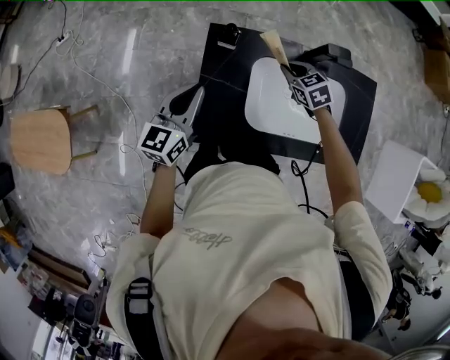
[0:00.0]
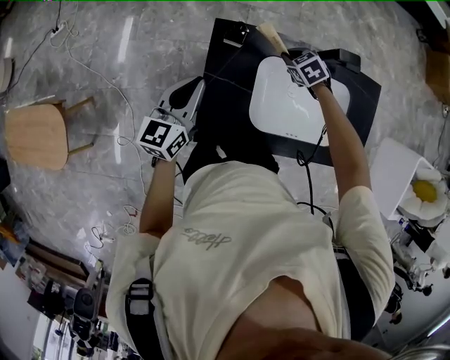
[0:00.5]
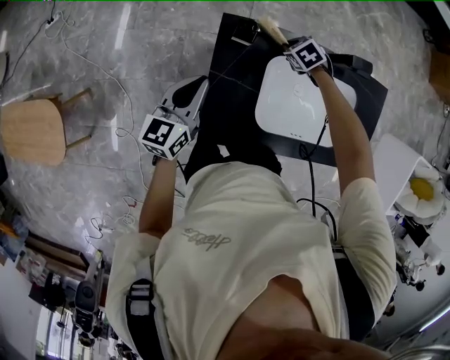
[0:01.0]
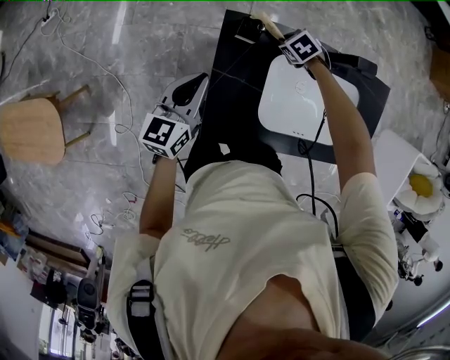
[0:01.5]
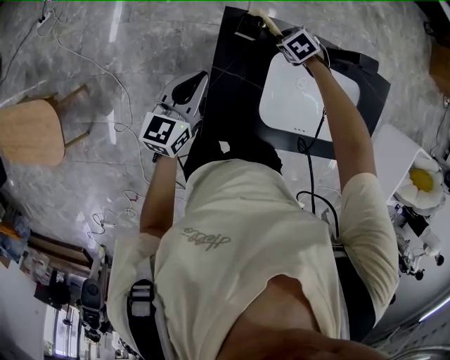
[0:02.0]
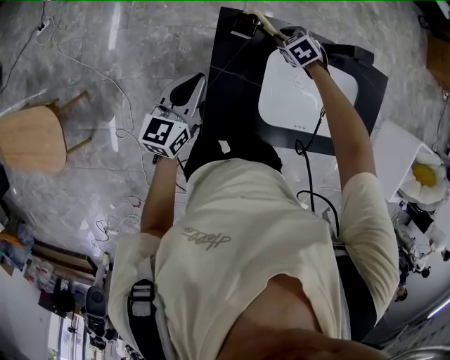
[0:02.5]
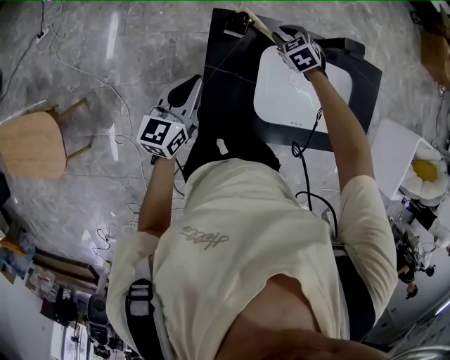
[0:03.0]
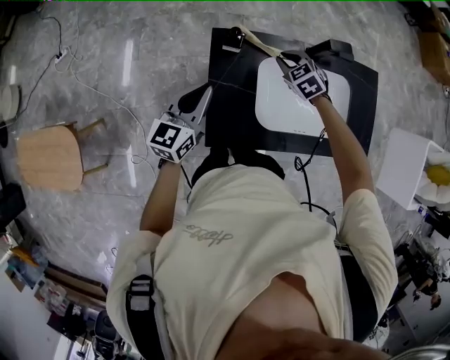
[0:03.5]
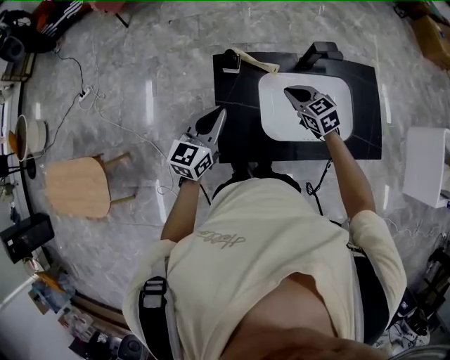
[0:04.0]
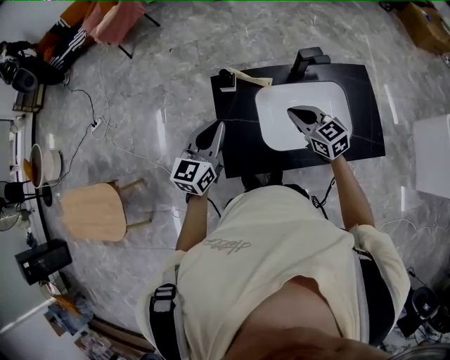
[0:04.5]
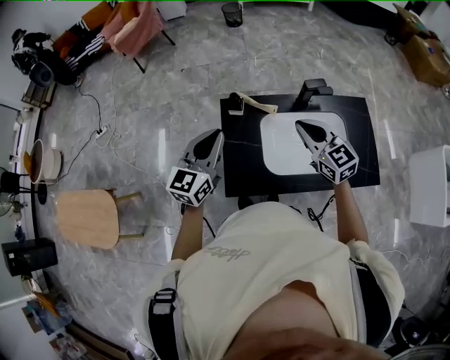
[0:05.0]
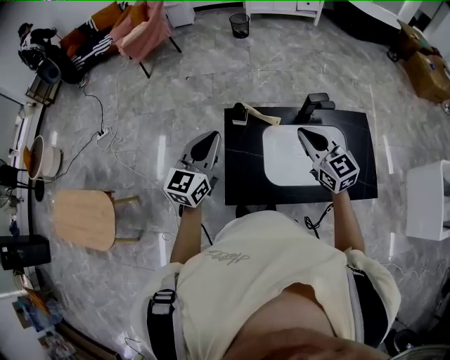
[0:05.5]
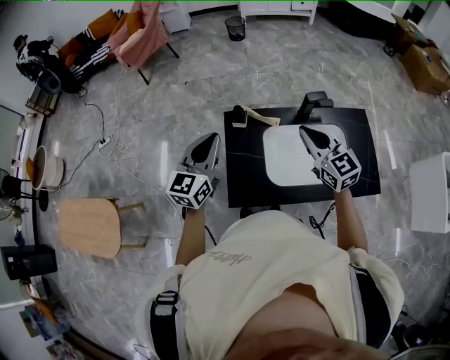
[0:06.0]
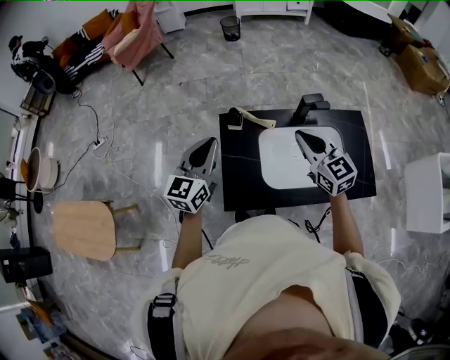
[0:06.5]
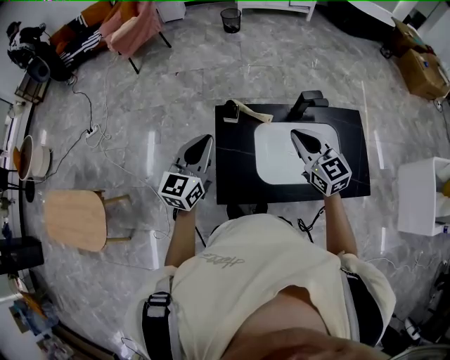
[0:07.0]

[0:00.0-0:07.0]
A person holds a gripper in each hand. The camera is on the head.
0:00.0 to 0:02.0: The left gripper shifts by roughly 10 cm, while the right gripper is displaced downward by roughly 15 cm, and turns by roughly 30 degrees.
0:02.0 to 0:03.5: The left gripper moves upward, about 5 cm. The right gripper is displaced upward by roughly 15 cm, and rotates about 30 degrees.
0:03.5 to 0:05.0: The right gripper heads upward and backward, covering about 30 cm, and tips its fingers upward by approximately 40 degrees; the left gripper heads upward and backward, covering some 15 cm.
0:05.0 to 0:07.0: The grippers move only a little.

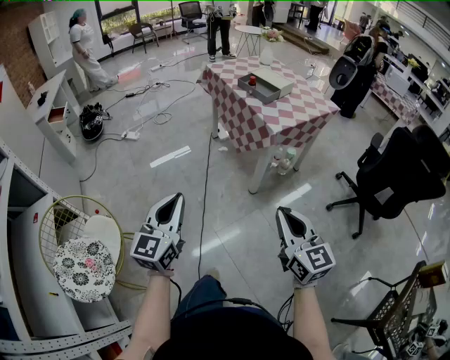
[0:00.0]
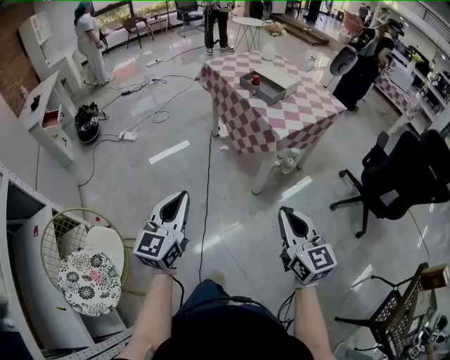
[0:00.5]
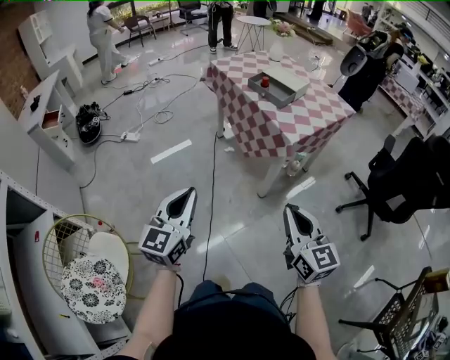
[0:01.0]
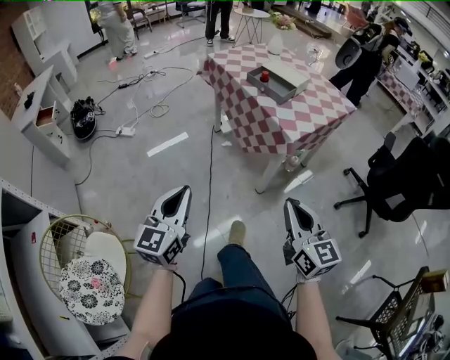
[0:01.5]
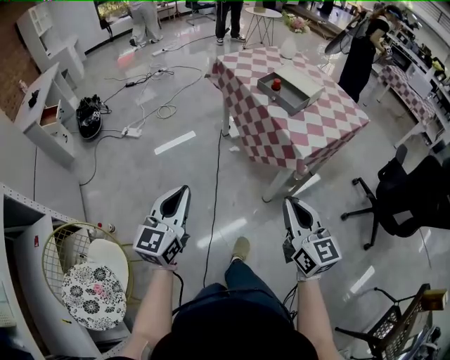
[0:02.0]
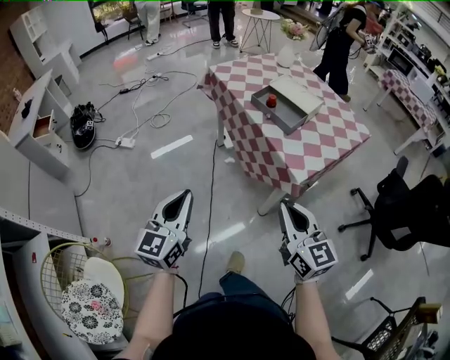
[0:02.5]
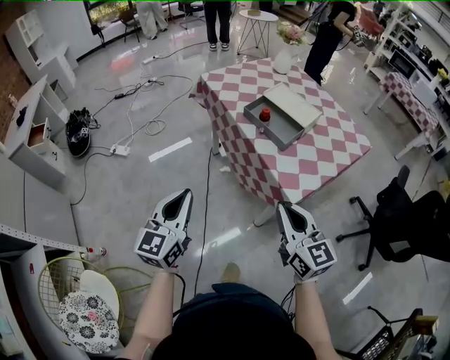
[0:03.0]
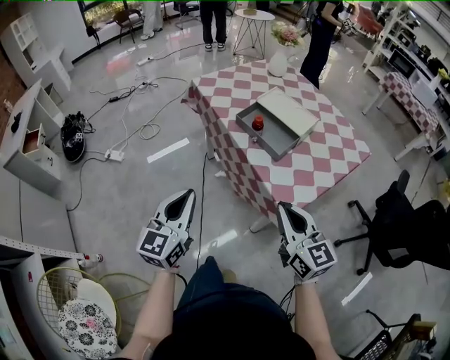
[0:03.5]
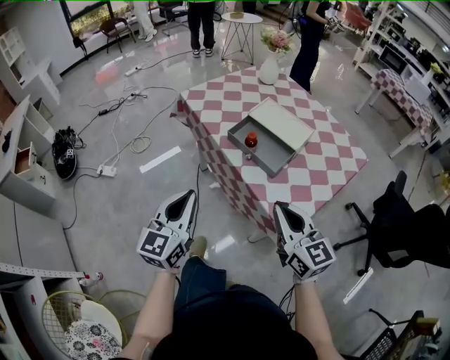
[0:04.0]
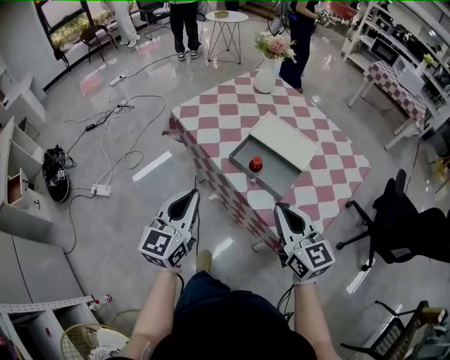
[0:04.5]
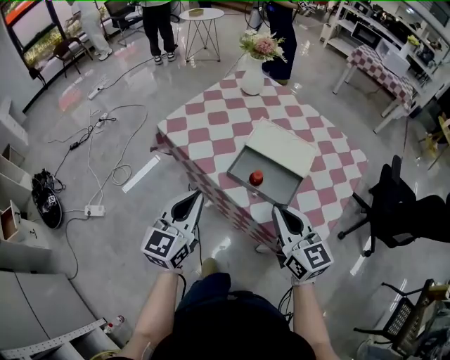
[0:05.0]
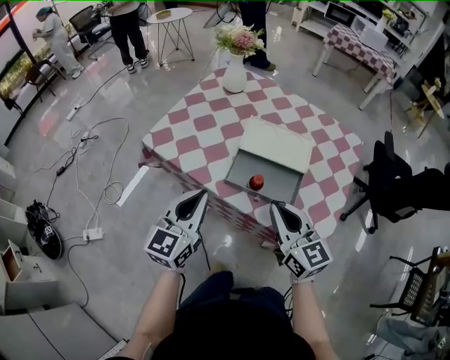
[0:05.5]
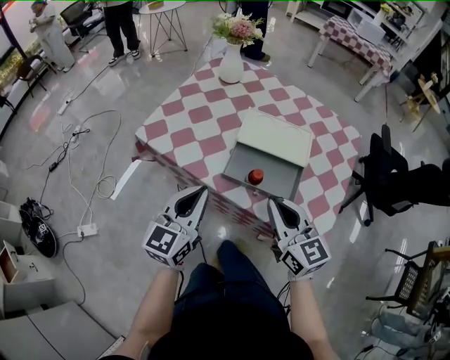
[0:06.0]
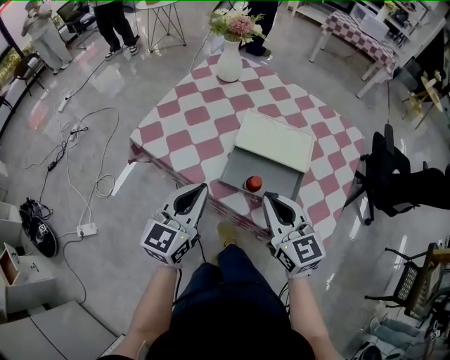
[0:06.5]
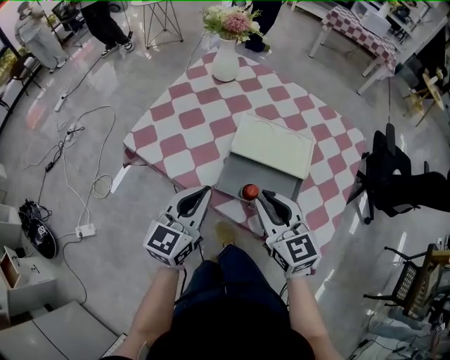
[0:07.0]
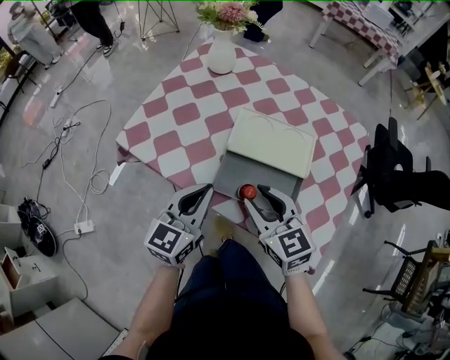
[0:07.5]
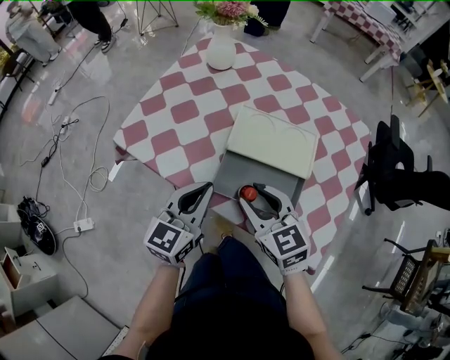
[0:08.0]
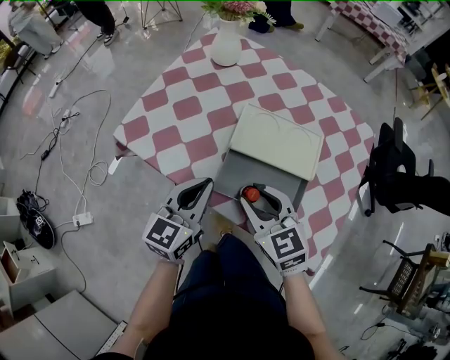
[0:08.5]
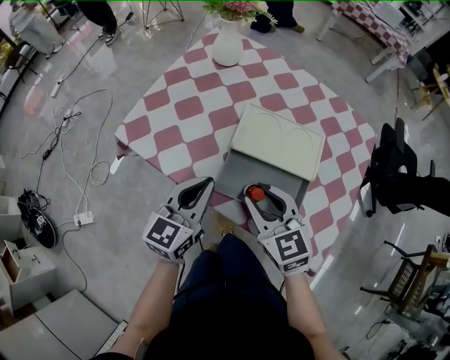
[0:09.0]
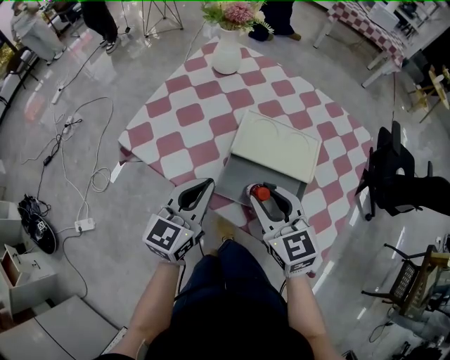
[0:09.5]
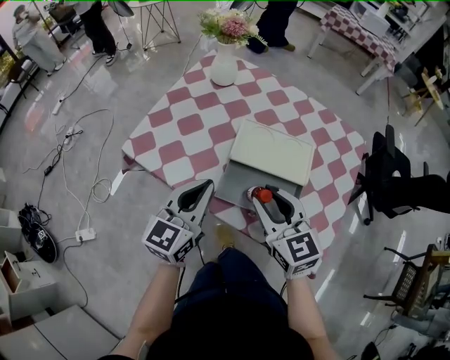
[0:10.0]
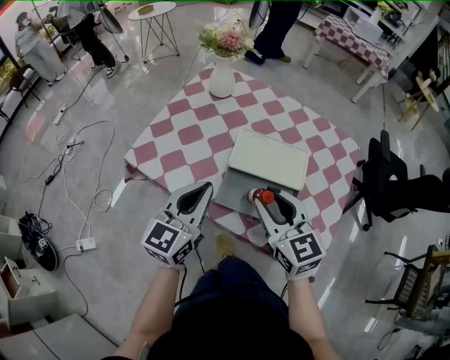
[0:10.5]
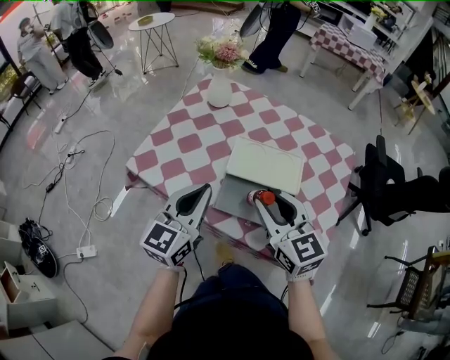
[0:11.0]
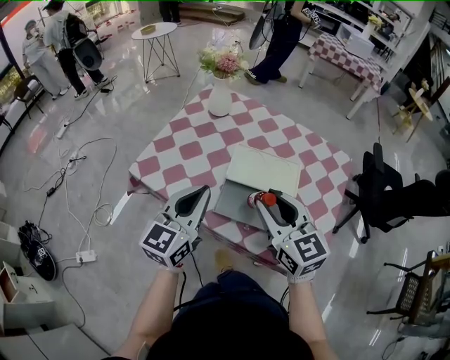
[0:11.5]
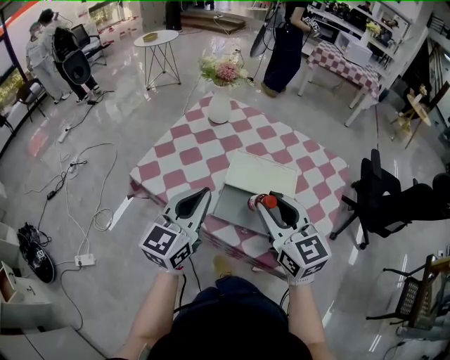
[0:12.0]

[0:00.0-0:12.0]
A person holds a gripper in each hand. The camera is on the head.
0:00.0 to 0:02.0: The two grippers go approximately 25 cm forward.
0:02.0 to 0:04.0: Both grippers move forward, some 35 cm.
0:04.0 to 0:06.0: The left gripper moves approximately 25 cm, and swivels roughly 30 degrees, while the right gripper shifts by approximately 20 cm, and changes its angle by approximately 20 degrees.
0:06.0 to 0:08.0: Both grippers travel together forward and downward, about 10 cm. The right gripper turns by about 20 degrees, and opens up.
0:08.0 to 0:10.0: Both grippers travel together upward, roughly 5 cm.
0:10.0 to 0:12.0: Both grippers move upward, roughly 10 cm.

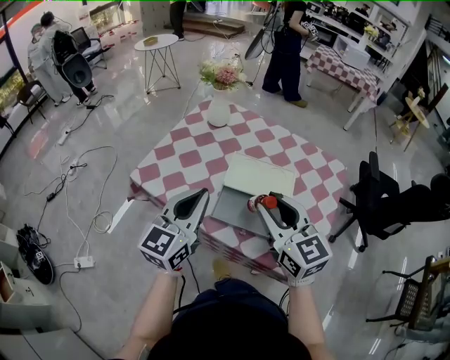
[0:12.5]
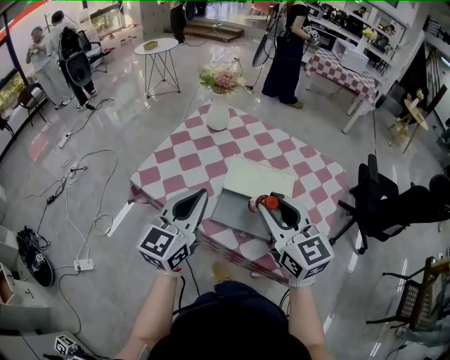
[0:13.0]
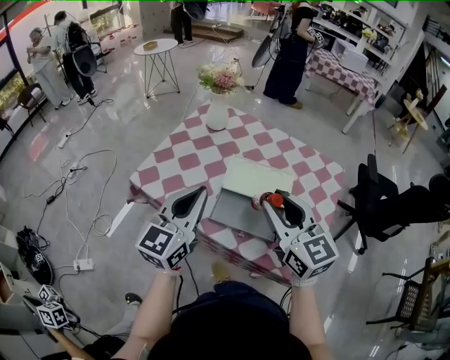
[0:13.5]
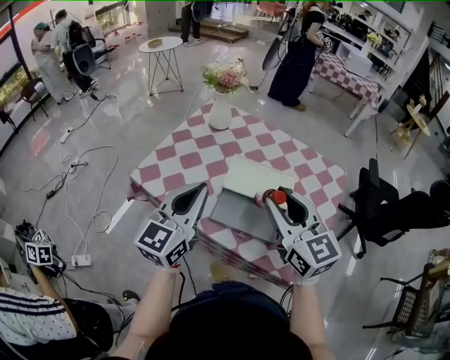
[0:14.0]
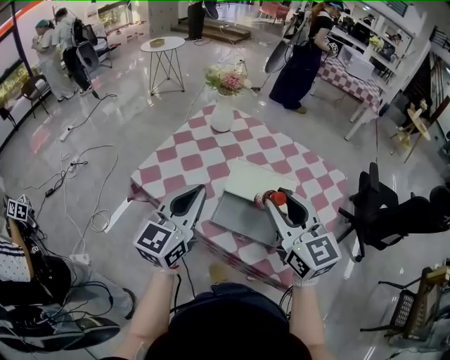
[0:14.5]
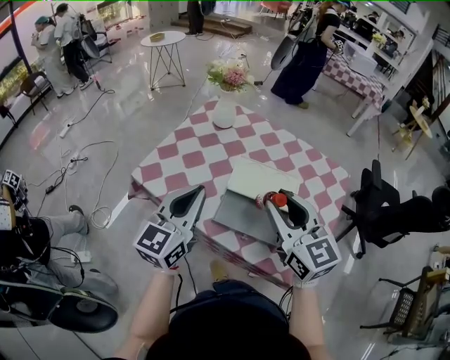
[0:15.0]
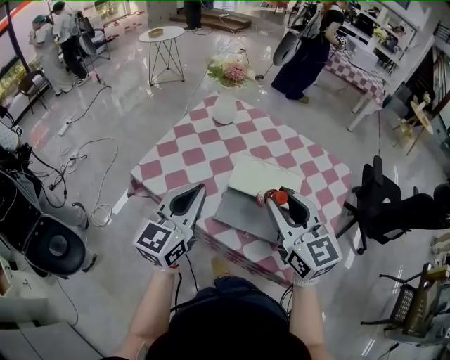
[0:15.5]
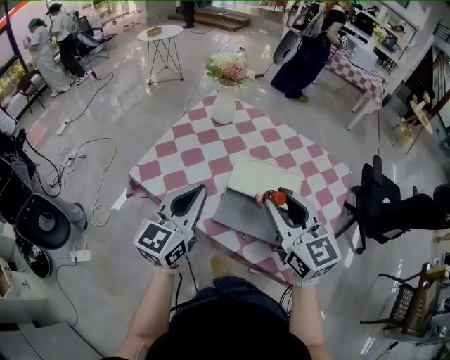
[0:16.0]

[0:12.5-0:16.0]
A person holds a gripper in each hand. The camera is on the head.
0:12.5 to 0:16.0: The grippers stay close to where they were, moving slightly.

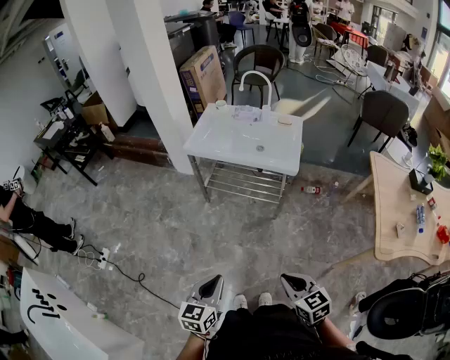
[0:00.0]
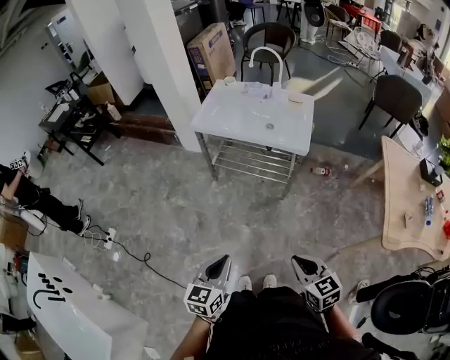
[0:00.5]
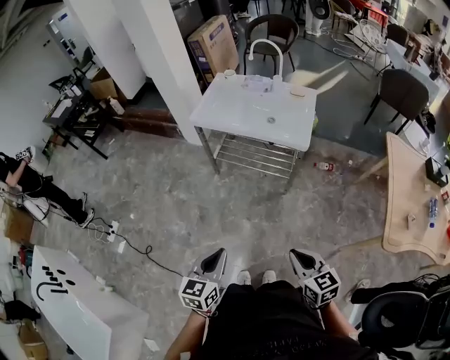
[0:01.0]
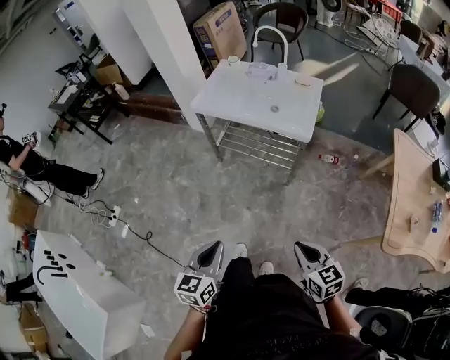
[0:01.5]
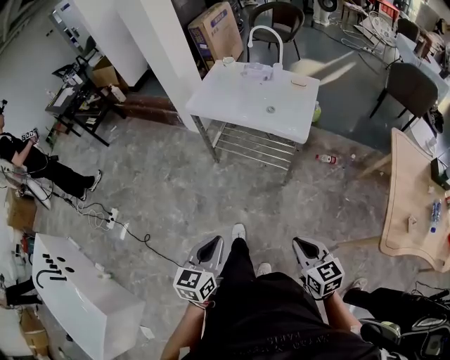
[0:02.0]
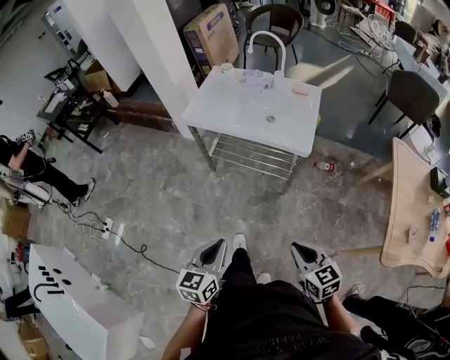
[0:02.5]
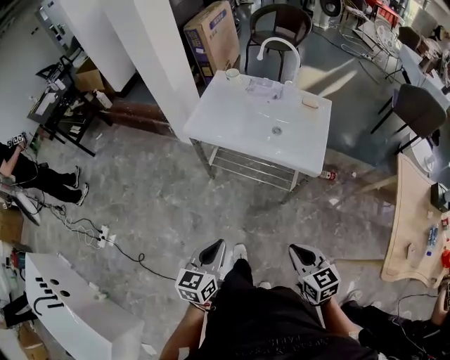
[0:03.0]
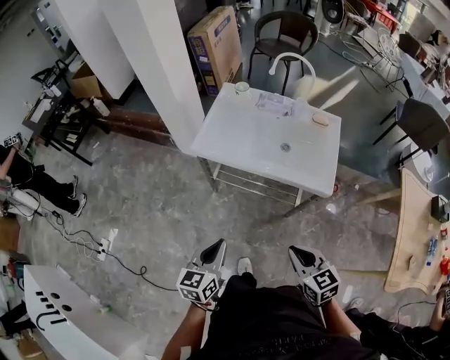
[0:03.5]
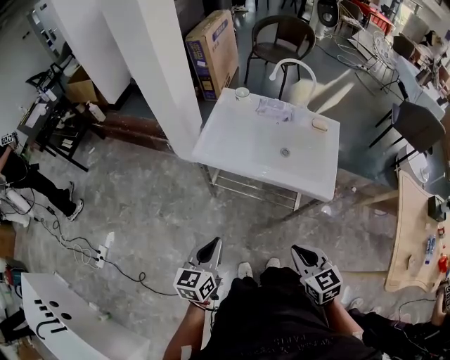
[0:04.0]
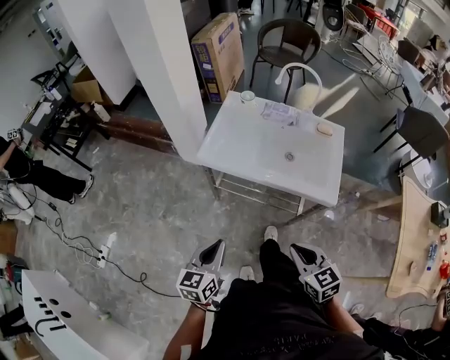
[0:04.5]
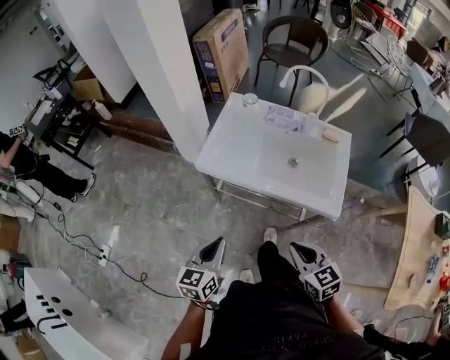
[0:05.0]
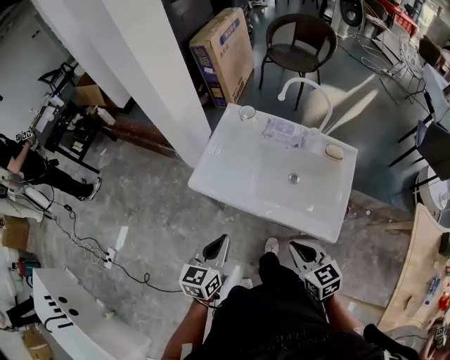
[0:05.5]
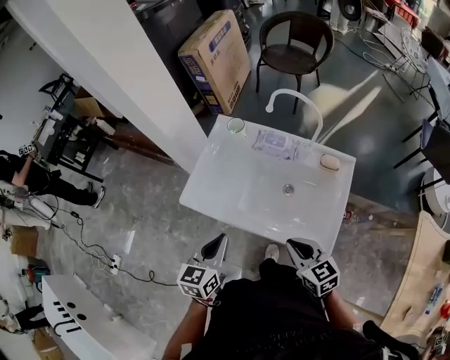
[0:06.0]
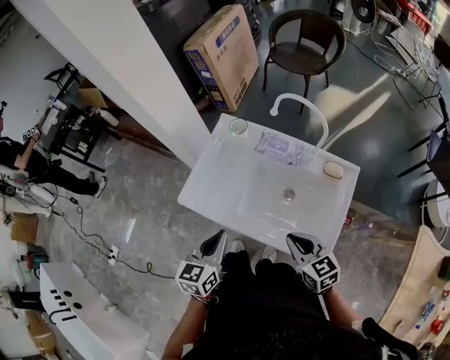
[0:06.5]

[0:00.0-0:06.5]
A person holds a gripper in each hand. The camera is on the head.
0:00.0 to 0:02.0: Both grippers move to the right and forward, roughly 10 cm.
0:02.0 to 0:04.5: The two grippers go some 35 cm forward and to the left.
0:04.5 to 0:06.5: Both grippers move forward and to the right, approximately 30 cm.
